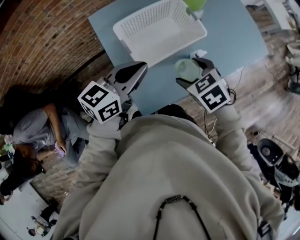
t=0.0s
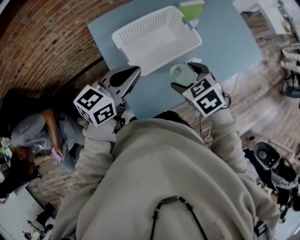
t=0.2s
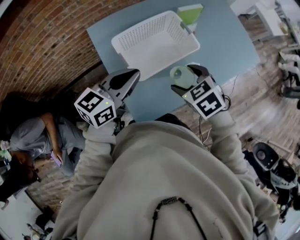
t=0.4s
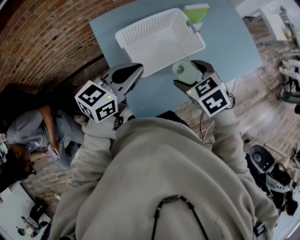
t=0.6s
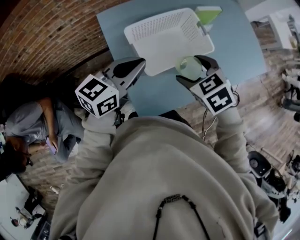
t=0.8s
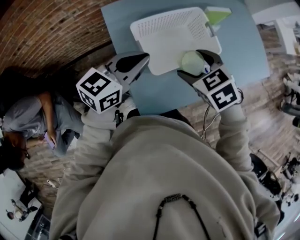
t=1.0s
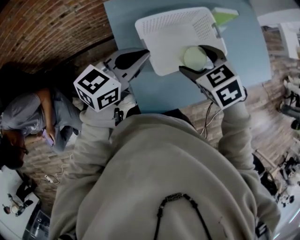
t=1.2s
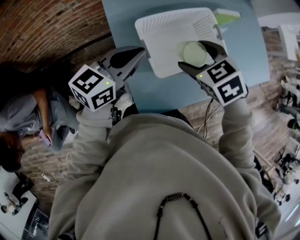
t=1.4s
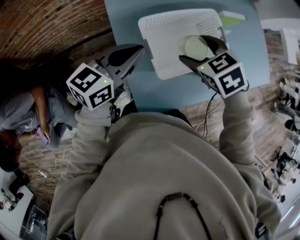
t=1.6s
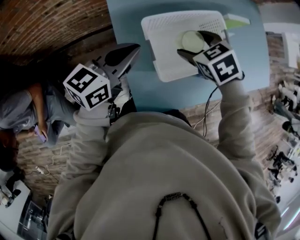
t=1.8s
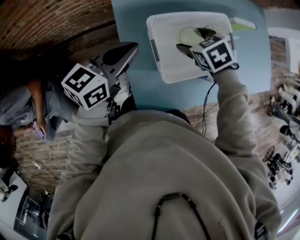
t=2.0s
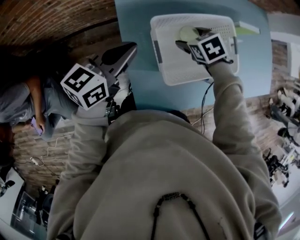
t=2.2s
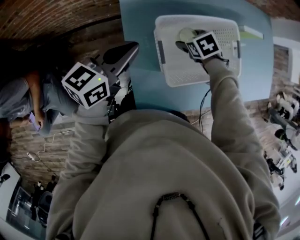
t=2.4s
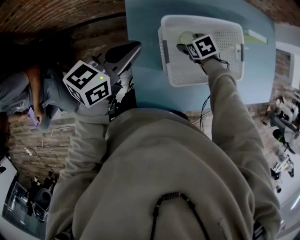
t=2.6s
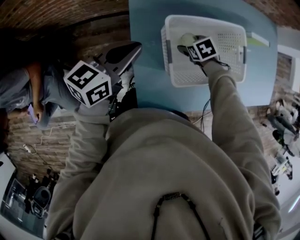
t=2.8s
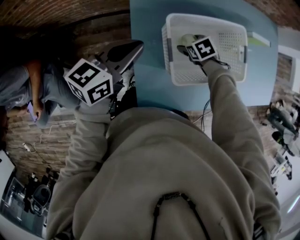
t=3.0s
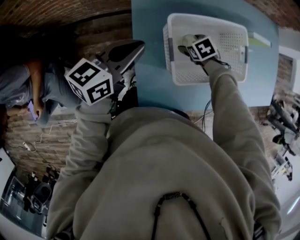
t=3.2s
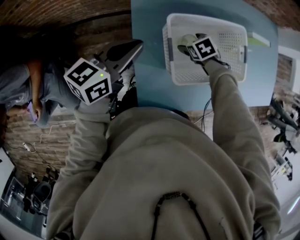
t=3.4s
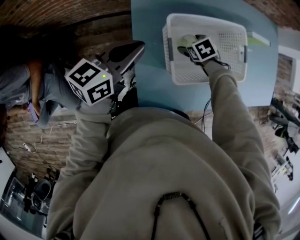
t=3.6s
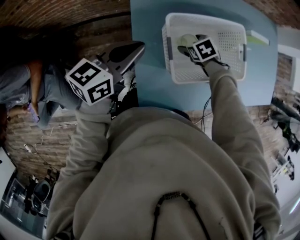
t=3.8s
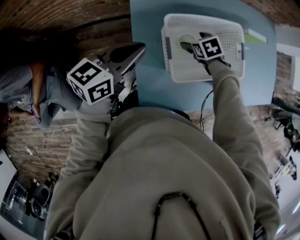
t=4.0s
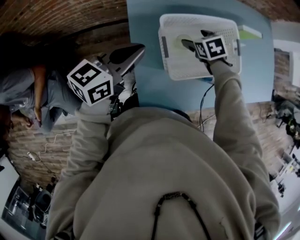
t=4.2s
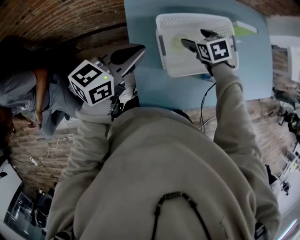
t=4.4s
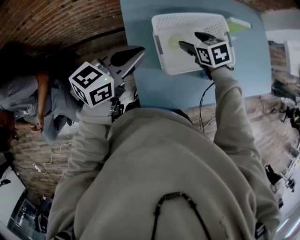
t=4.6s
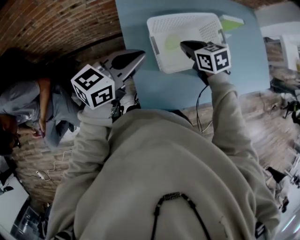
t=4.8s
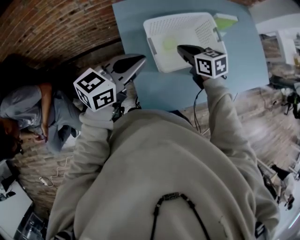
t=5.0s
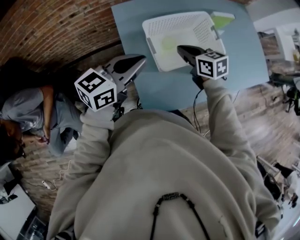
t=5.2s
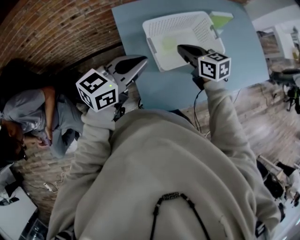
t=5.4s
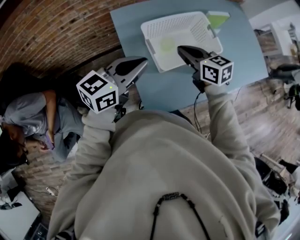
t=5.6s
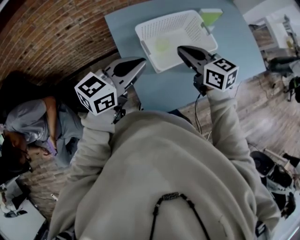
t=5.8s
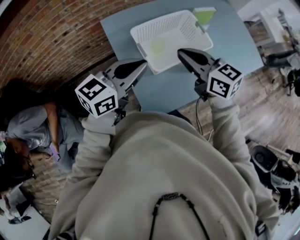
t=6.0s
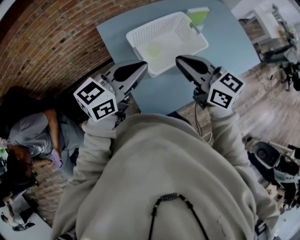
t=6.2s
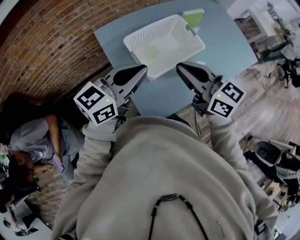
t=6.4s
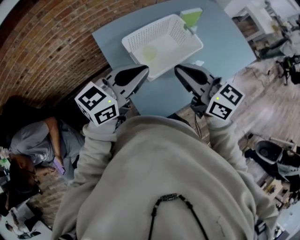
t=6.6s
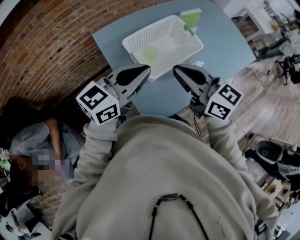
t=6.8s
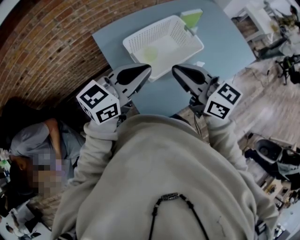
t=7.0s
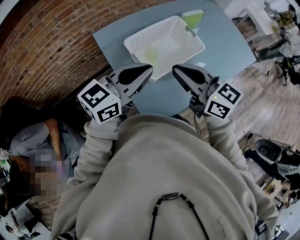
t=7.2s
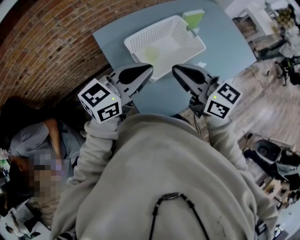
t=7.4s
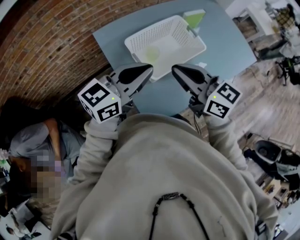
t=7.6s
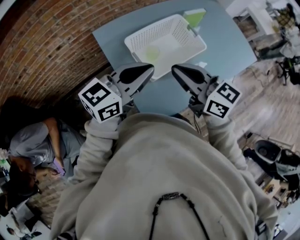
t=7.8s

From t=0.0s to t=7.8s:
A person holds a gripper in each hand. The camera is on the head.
From t=0.0s to t=1.6s: The right gripper moves forward and to the left, approximately 20 cm; the left gripper goes roughly 15 cm to the left and forward.
From t=1.6s to t=3.2s: The right gripper moves downward, roughly 25 cm. Meanwhile the left gripper changes place by roughly 10 cm.
From t=3.2s to t=4.6s: The right gripper goes about 15 cm upward, and swivels about 20 degrees, while the left gripper moves upward, roughly 5 cm.
From t=4.6s to t=6.2s: The left gripper shifts some 15 cm to the right, upward and backward. Meanwhile the right gripper shifts about 25 cm upward and backward, tips its fingers upward by about 40 degrees, and closes.
From t=6.2s to t=7.8s: The grippers make only small movements.

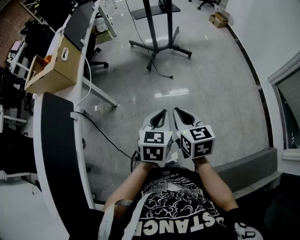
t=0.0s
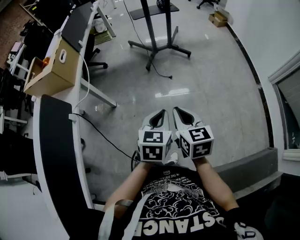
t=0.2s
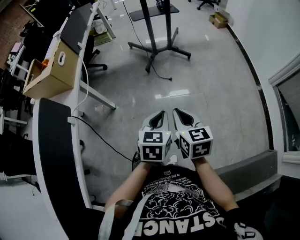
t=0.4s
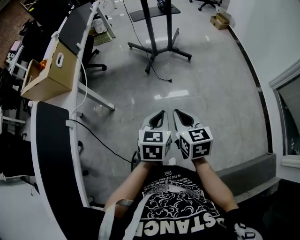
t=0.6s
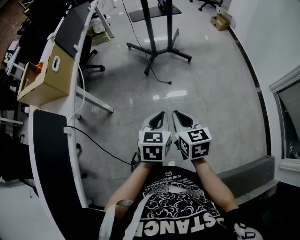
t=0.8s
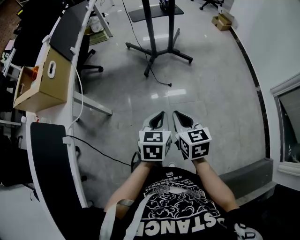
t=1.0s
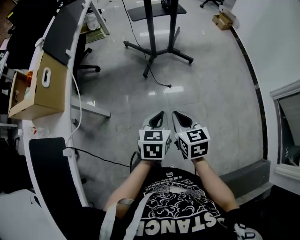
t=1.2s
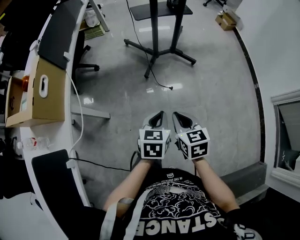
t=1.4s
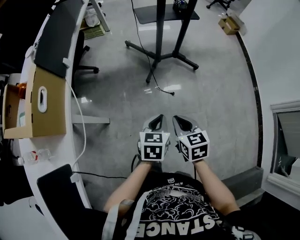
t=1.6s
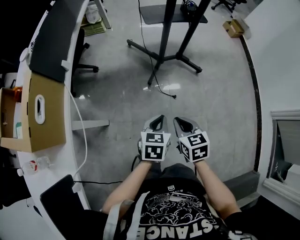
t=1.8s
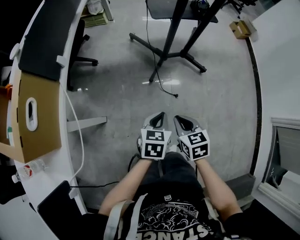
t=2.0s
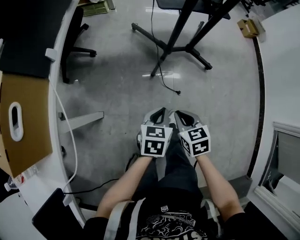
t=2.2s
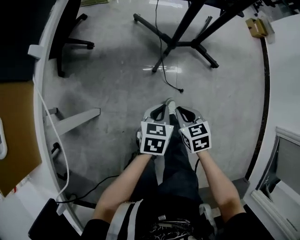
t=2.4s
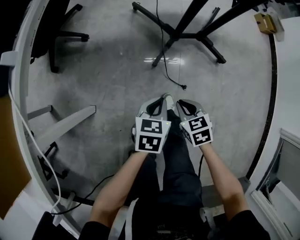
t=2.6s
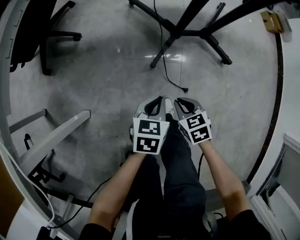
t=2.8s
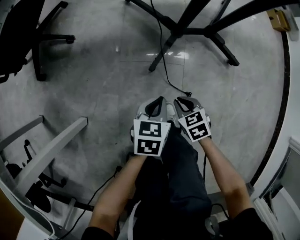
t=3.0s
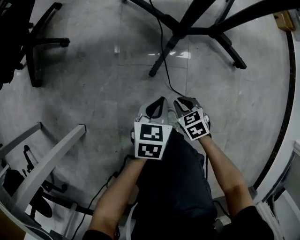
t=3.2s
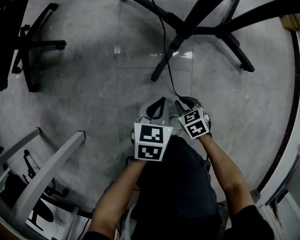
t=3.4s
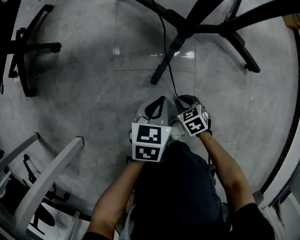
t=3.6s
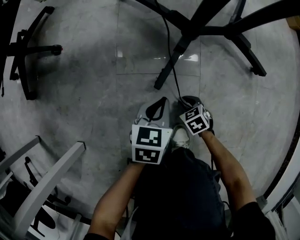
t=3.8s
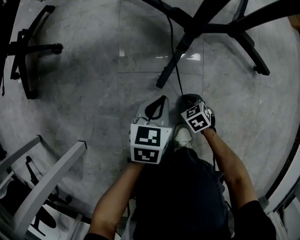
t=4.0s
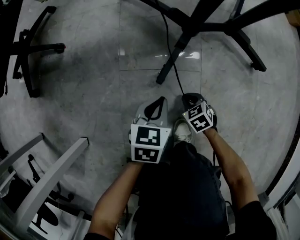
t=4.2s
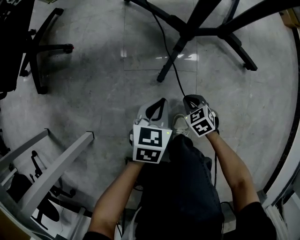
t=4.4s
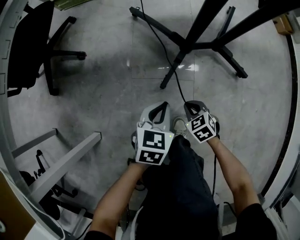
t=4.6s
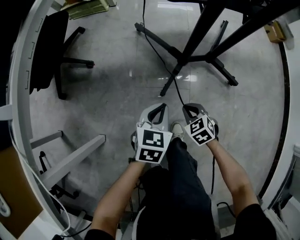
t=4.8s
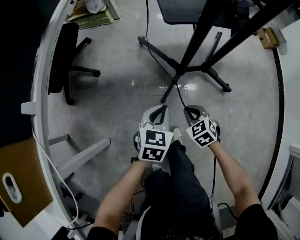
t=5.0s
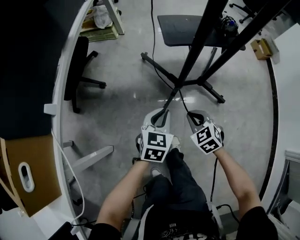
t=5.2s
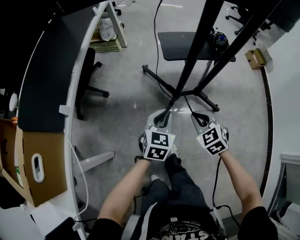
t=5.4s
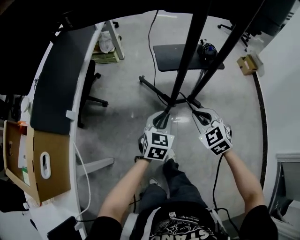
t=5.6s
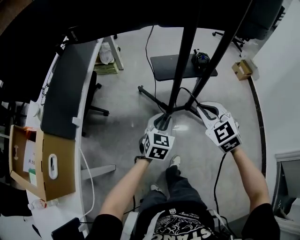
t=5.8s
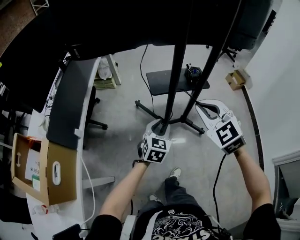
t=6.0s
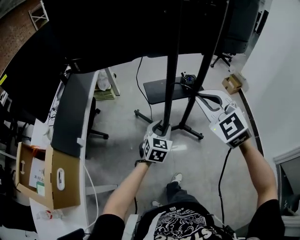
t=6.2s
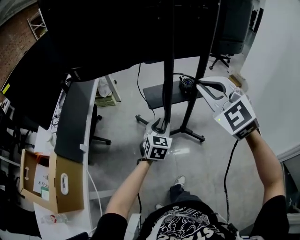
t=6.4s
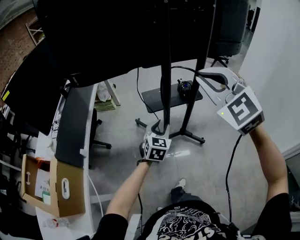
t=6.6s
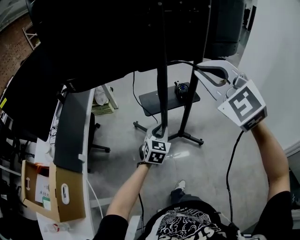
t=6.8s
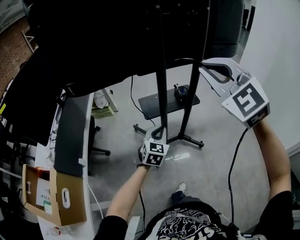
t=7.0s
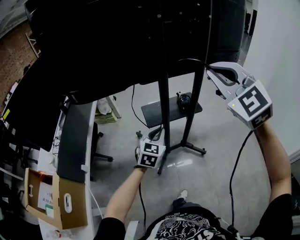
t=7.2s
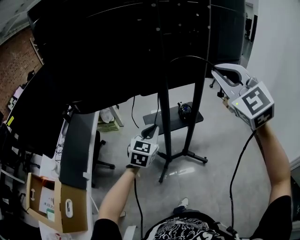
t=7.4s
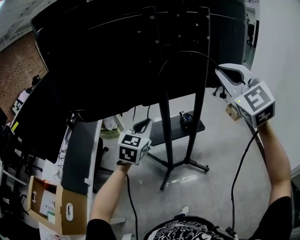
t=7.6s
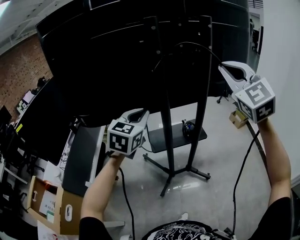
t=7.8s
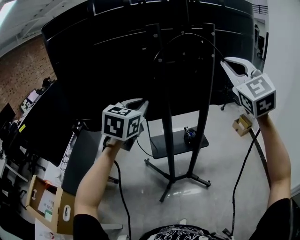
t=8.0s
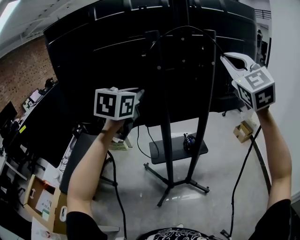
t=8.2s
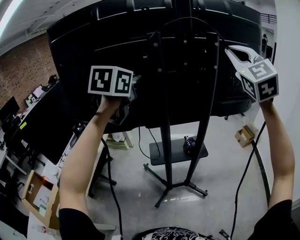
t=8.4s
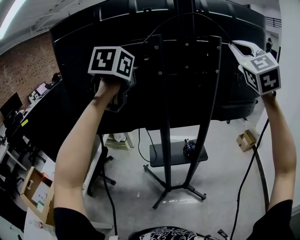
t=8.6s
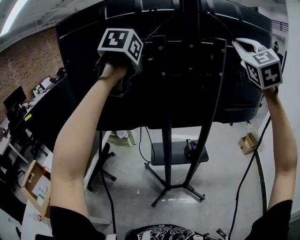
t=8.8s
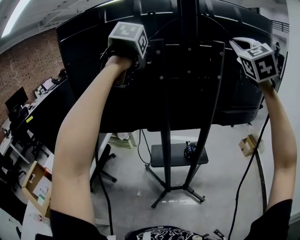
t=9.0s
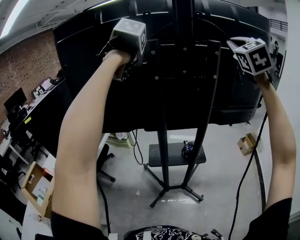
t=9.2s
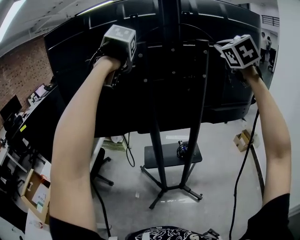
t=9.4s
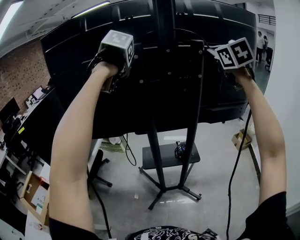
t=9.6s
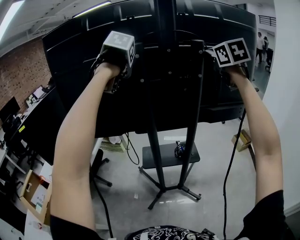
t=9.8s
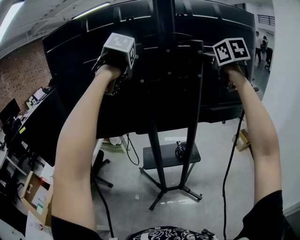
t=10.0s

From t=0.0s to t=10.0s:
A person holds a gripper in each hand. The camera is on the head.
From t=0.0s to t=1.4s: Both grippers travel together forward, some 25 cm.
From t=1.4s to t=2.8s: The two grippers go some 50 cm downward and forward. The right gripper rotates some 30 degrees.
From t=2.8s to t=4.2s: The right gripper heads downward, covering approximately 30 cm; the left gripper goes approximately 25 cm downward and forward.
From t=4.2s to t=5.8s: The grippers both shift upward by about 70 cm. The left gripper turns by approximately 30 degrees, and opens, while the right gripper angles its fingers upward, by some 30 degrees.
From t=5.8s to t=7.2s: The left gripper travels upward and forward by approximately 15 cm. The right gripper shifts roughly 35 cm upward, and turns by approximately 30 degrees.
From t=7.2s to t=8.6s: The left gripper goes about 50 cm upward and forward; the right gripper moves upward, forward and to the right, some 30 cm.
From t=8.6s to t=10.0s: The left gripper rotates some 30 degrees, while the right gripper moves forward, approximately 10 cm, and rotates approximately 40 degrees.

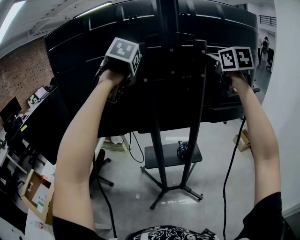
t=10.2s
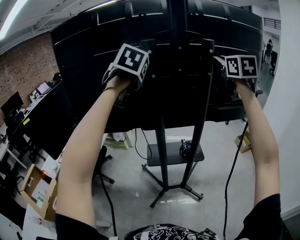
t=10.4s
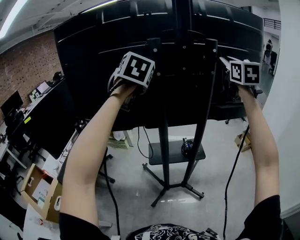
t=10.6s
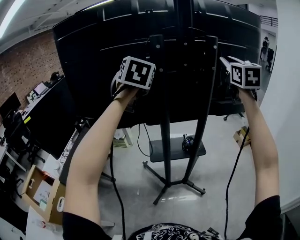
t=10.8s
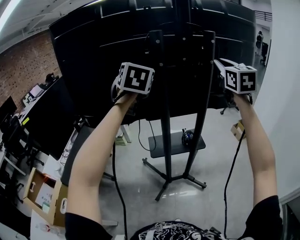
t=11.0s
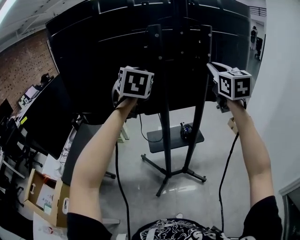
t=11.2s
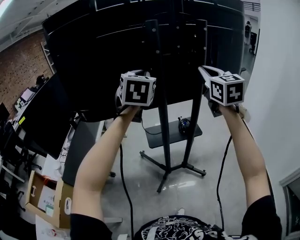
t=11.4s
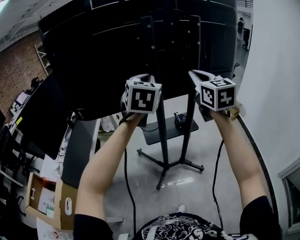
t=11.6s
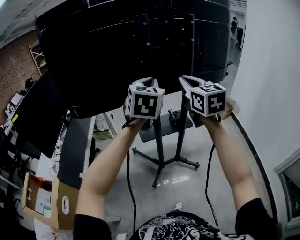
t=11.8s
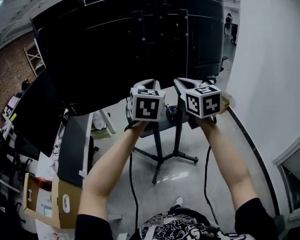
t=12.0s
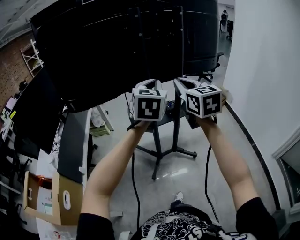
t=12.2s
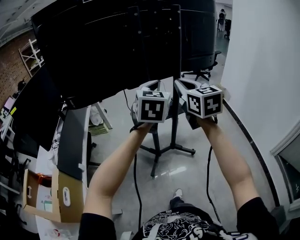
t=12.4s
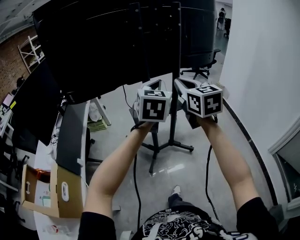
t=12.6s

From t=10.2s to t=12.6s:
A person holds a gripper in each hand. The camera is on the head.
From t=10.2s to t=11.4s: The right gripper shifts some 20 cm backward, to the left and downward. Meanwhile the left gripper shifts approximately 10 cm backward and downward, and rotates about 30 degrees.
From t=11.4s to t=12.6s: The right gripper shifts approximately 20 cm backward and downward. The left gripper travels backward, downward and to the right by about 20 cm.

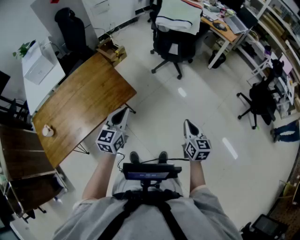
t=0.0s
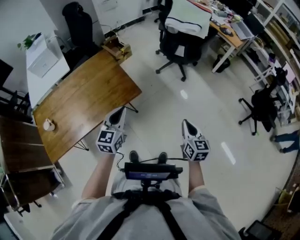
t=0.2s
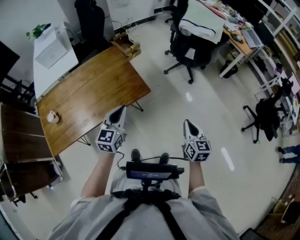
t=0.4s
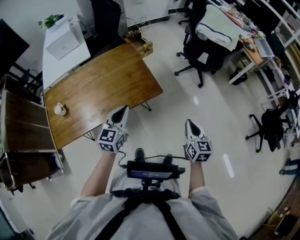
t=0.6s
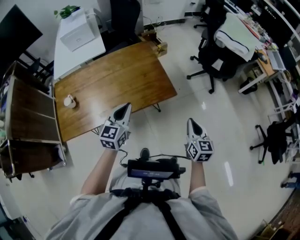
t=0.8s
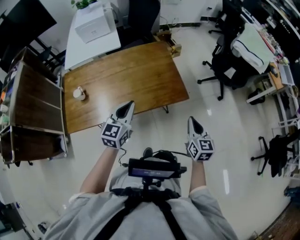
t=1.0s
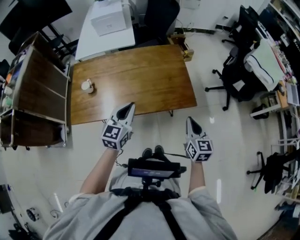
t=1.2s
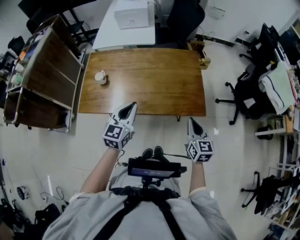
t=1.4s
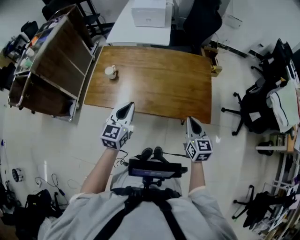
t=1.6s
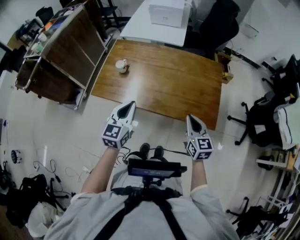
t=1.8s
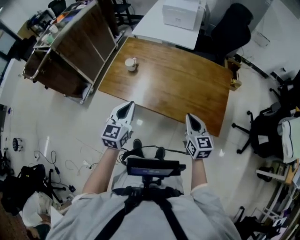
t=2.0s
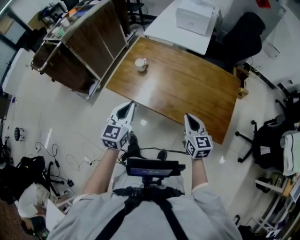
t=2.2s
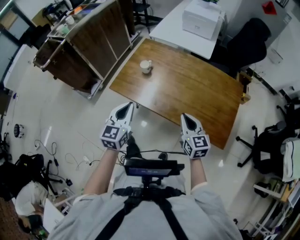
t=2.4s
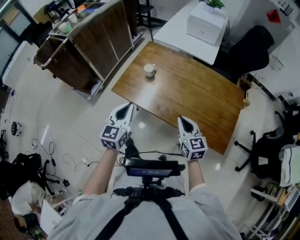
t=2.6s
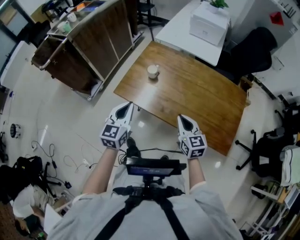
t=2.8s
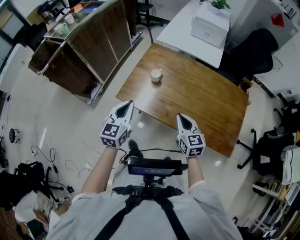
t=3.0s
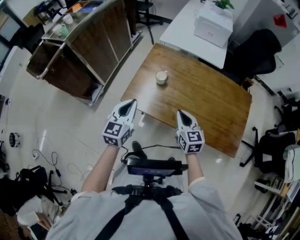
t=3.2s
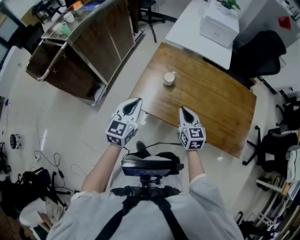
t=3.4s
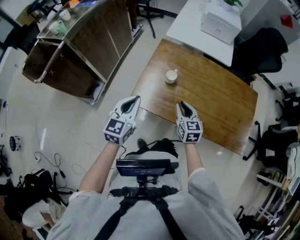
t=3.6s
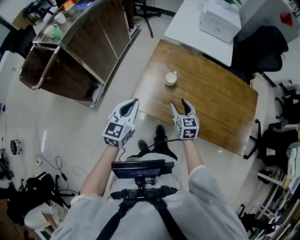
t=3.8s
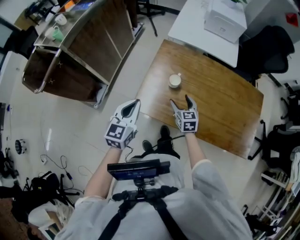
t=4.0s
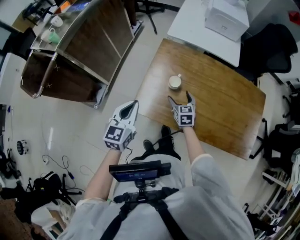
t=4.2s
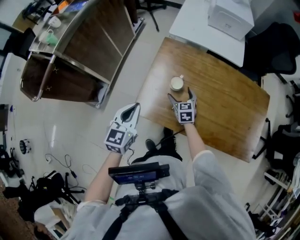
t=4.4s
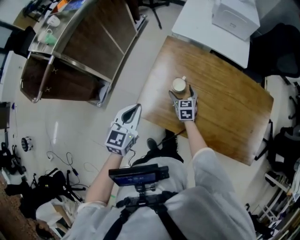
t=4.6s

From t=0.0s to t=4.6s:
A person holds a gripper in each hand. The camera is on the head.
From t=0.0s to t=1.6s: The right gripper moves roughly 40 cm, and turns by roughly 50 degrees; the left gripper ends up approximately 40 cm from where it was, and changes its angle by approximately 50 degrees.
From t=1.6s to t=3.0s: The left gripper ends up roughly 25 cm from where it was. The right gripper moves about 30 cm, and rotates about 30 degrees.
From t=3.0s to t=4.6s: The right gripper is displaced forward, downward and to the left by roughly 40 cm, and opens. The left gripper moves forward and to the left, some 20 cm.
